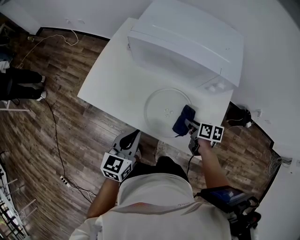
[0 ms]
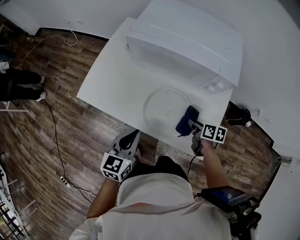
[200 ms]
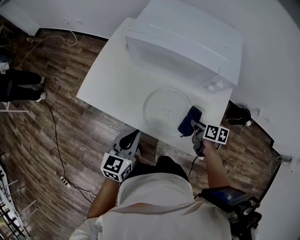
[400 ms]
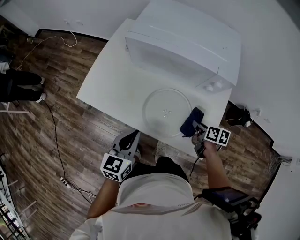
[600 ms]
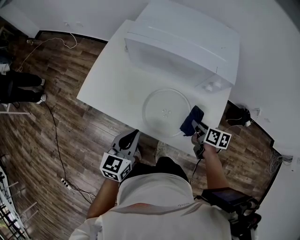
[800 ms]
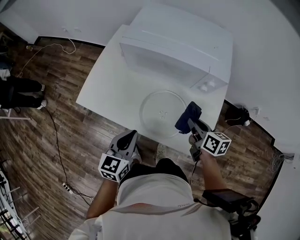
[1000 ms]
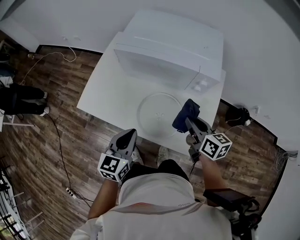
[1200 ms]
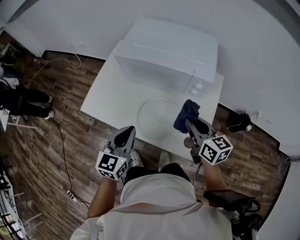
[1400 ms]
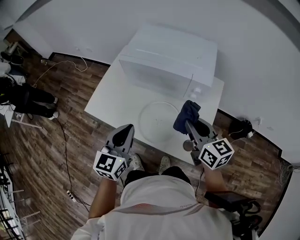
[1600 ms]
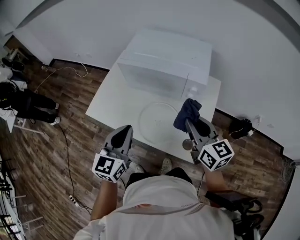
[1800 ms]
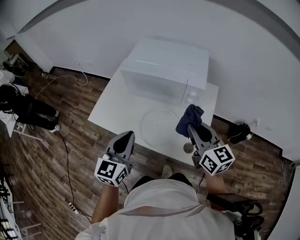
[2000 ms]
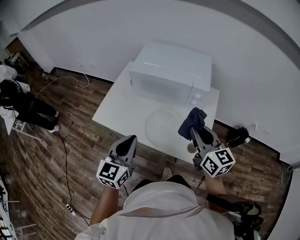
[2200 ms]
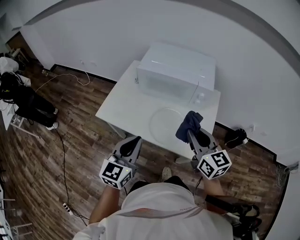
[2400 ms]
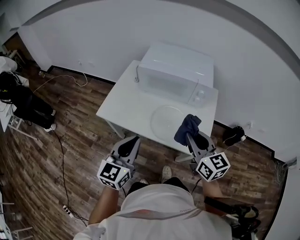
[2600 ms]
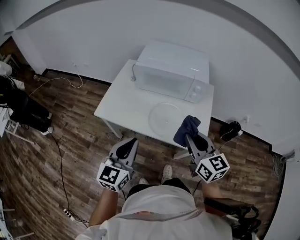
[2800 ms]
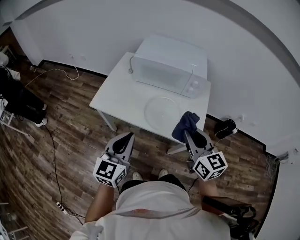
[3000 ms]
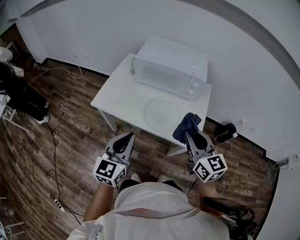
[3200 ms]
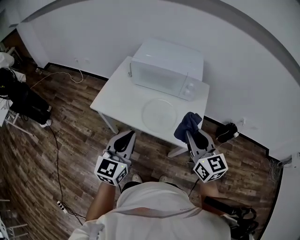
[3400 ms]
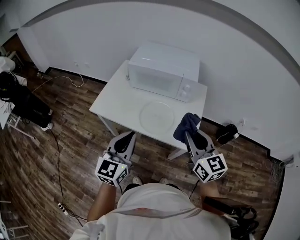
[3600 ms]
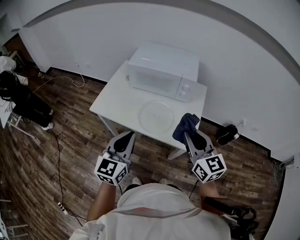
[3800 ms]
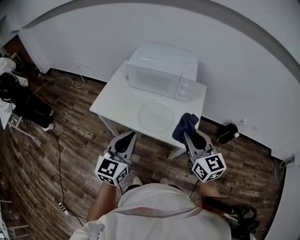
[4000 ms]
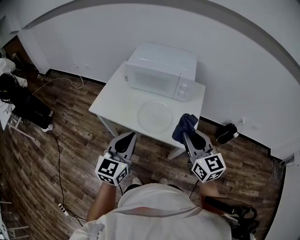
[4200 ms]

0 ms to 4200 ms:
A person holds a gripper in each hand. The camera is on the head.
0 ms to 1400 ms: The left gripper goes about 10 cm upward; the right gripper heads upward, covering some 20 cm, and swivels roughly 40 degrees.
1400 ms to 2800 ms: The right gripper goes roughly 25 cm backward, upward and to the left. Meanwhile the left gripper heads backward, to the left and upward, covering roughly 20 cm.
2800 ms to 4200 ms: Both grippers move to the right, about 10 cm.

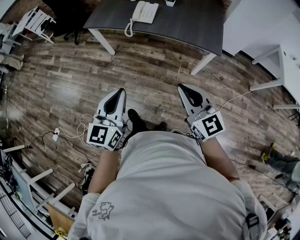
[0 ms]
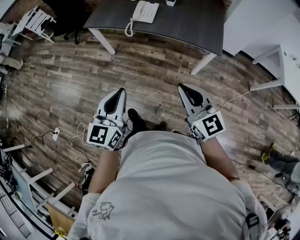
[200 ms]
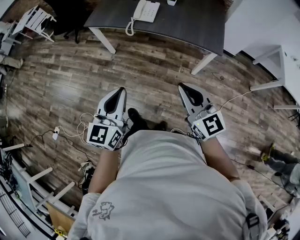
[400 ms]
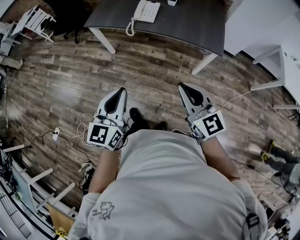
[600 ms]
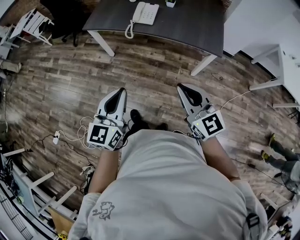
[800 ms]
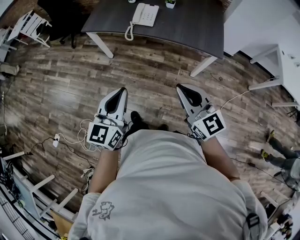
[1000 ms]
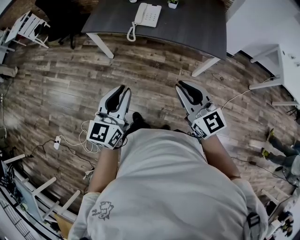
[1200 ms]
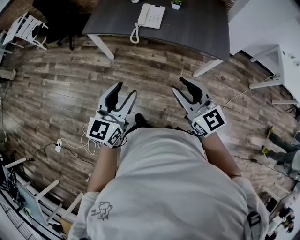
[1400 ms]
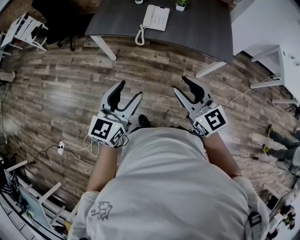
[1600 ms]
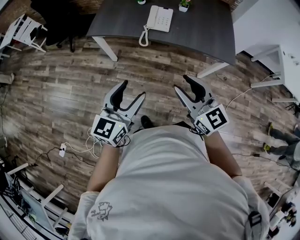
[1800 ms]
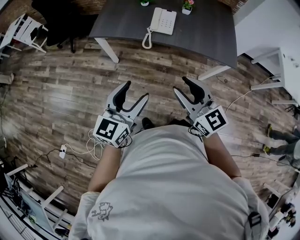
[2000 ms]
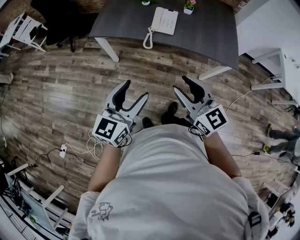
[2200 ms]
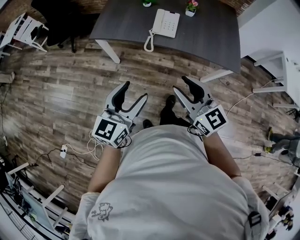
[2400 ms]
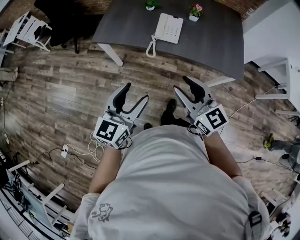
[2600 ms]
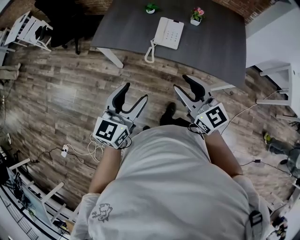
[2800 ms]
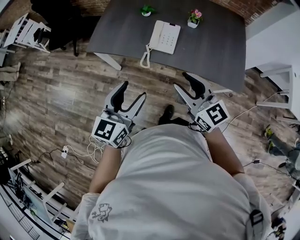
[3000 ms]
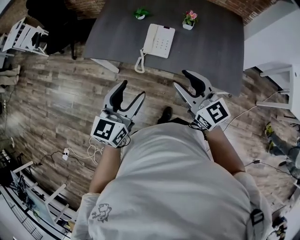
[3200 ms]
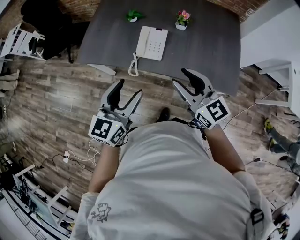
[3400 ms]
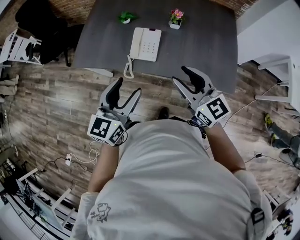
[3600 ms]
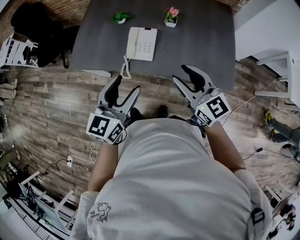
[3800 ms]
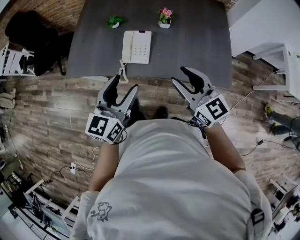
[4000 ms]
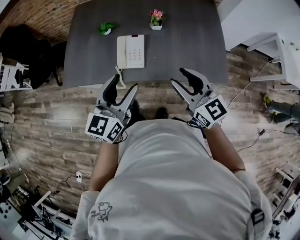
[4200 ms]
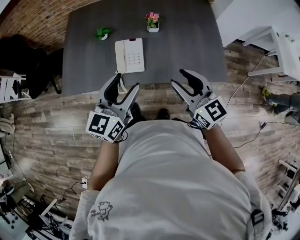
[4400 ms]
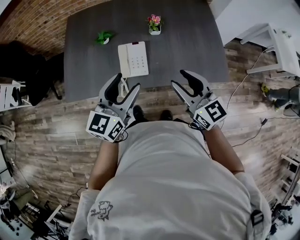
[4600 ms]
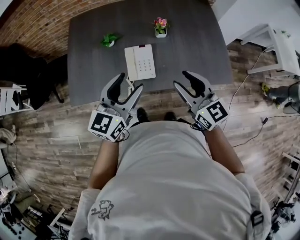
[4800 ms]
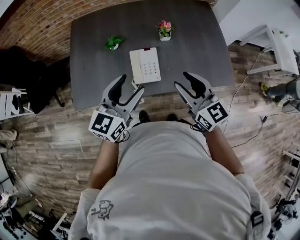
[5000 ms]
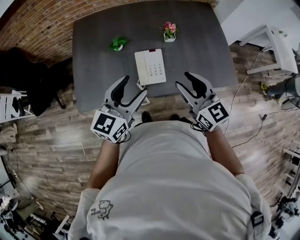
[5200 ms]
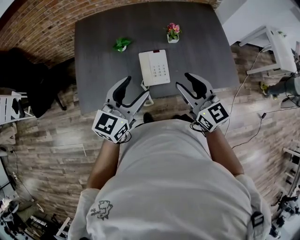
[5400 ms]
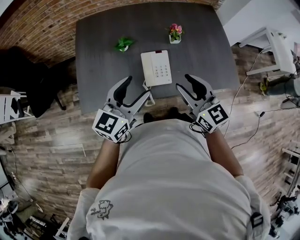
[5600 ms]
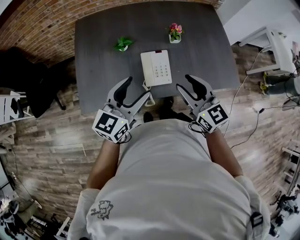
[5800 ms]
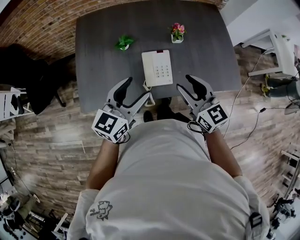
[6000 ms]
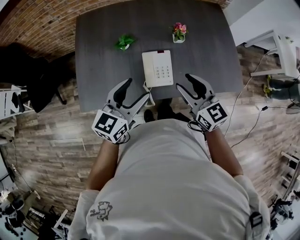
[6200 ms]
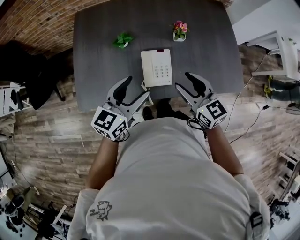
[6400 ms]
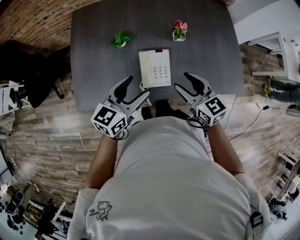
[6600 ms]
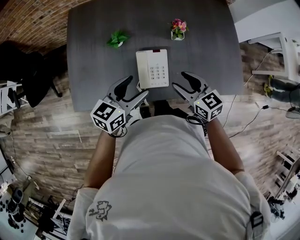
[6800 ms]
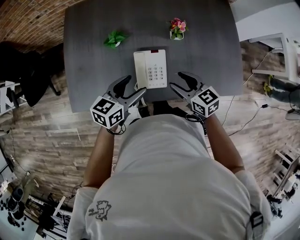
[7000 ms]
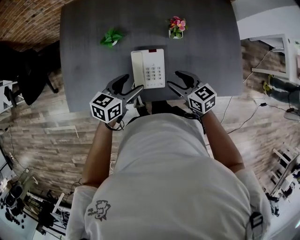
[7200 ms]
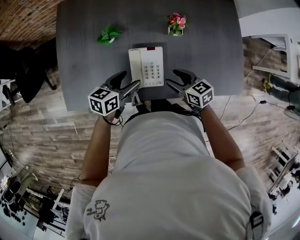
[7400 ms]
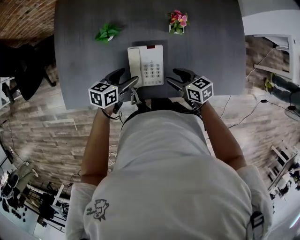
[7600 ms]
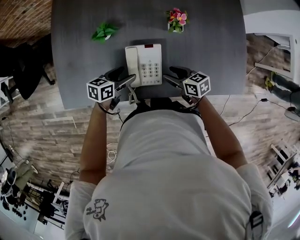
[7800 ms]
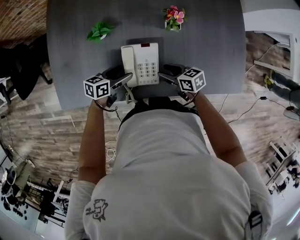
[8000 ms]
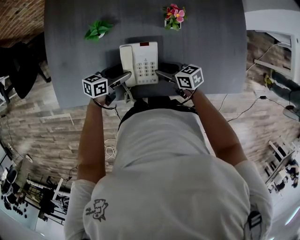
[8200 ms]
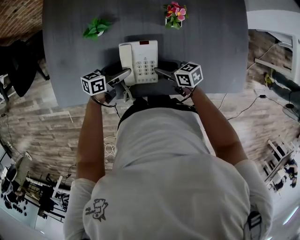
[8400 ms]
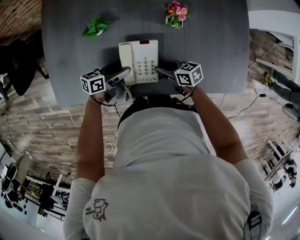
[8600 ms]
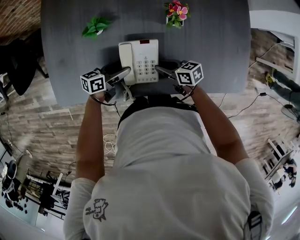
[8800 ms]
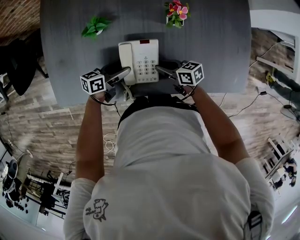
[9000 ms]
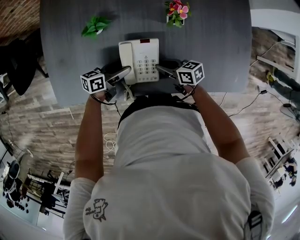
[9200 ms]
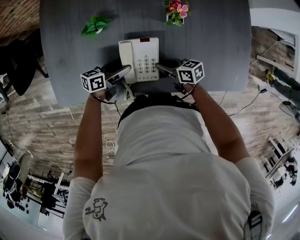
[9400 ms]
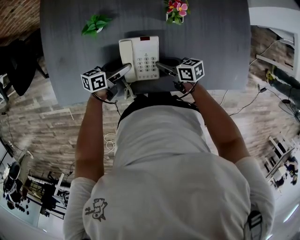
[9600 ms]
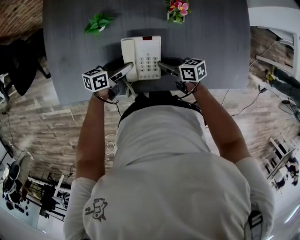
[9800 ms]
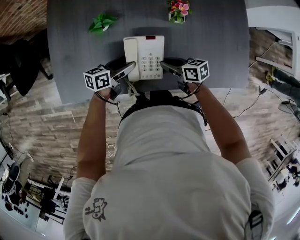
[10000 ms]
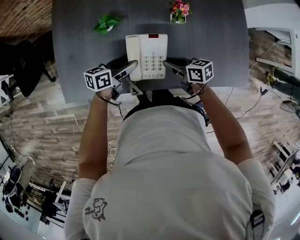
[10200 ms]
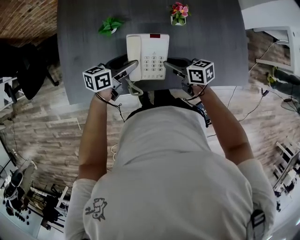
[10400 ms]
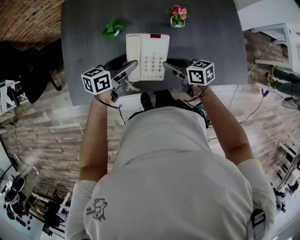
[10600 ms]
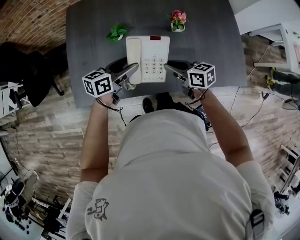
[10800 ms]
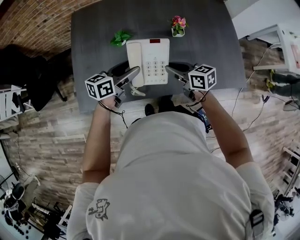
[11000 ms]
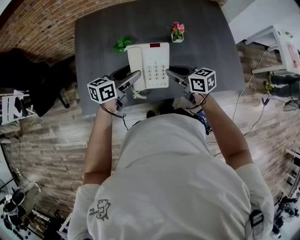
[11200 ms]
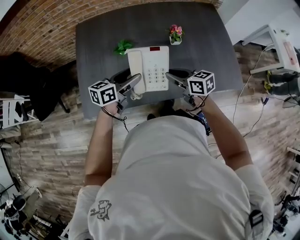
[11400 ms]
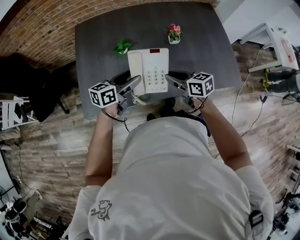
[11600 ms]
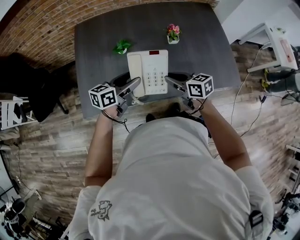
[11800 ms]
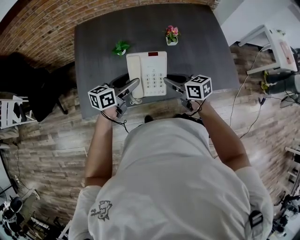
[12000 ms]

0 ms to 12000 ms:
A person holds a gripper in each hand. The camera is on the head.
0 ms to 1600 ms: The grippers both shift forward and to the left by about 20 cm. The left gripper opens its fingers, while the right gripper opens its fingers.
1600 ms to 3000 ms: The two grippers go roughly 20 cm forward.
3000 ms to 4400 ms: The left gripper is displaced forward and to the right by some 20 cm; the right gripper goes about 15 cm to the right and forward.
4400 ms to 6000 ms: The right gripper goes roughly 15 cm to the left. The left gripper shifts approximately 15 cm to the left and forward.
6000 ms to 7600 ms: The right gripper shifts about 25 cm downward, and changes its angle by roughly 40 degrees; the left gripper shifts some 25 cm downward and forward, and changes its angle by roughly 40 degrees.
7600 ms to 9000 ms: Both grippers move downward, roughly 5 cm. The right gripper closes up.
9000 ms to 10400 ms: The grippers both shift upward by approximately 10 cm.
10400 ms to 12000 ms: Both grippers travel together upward and backward, some 10 cm.

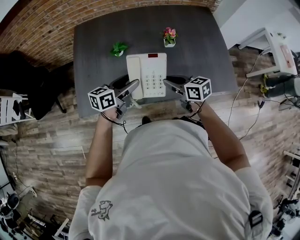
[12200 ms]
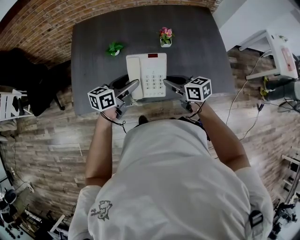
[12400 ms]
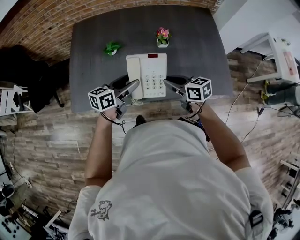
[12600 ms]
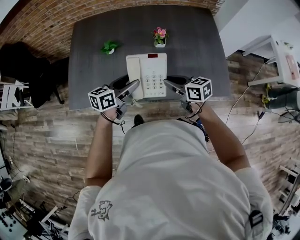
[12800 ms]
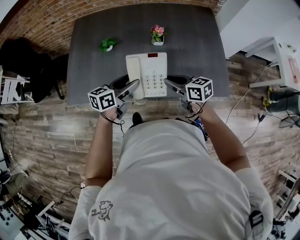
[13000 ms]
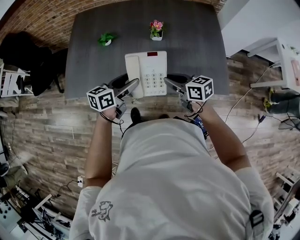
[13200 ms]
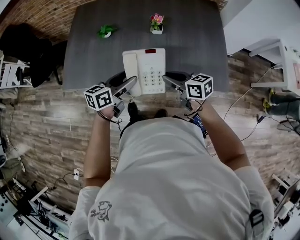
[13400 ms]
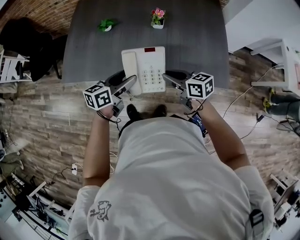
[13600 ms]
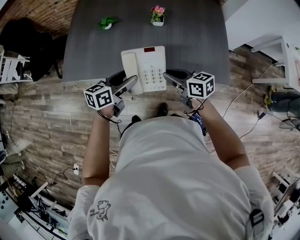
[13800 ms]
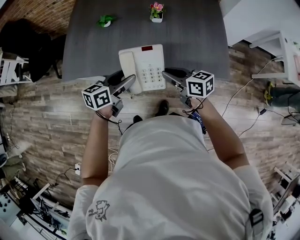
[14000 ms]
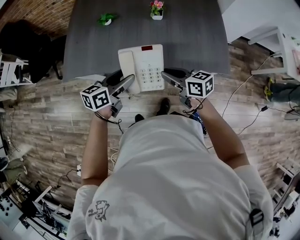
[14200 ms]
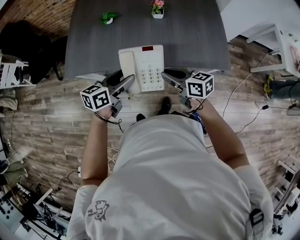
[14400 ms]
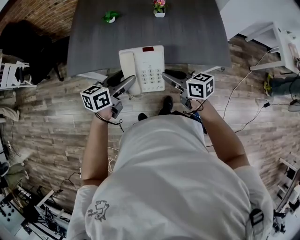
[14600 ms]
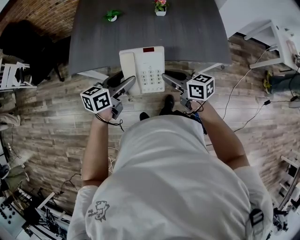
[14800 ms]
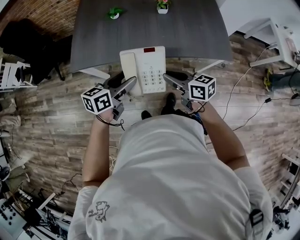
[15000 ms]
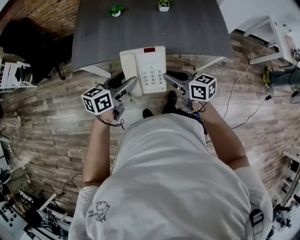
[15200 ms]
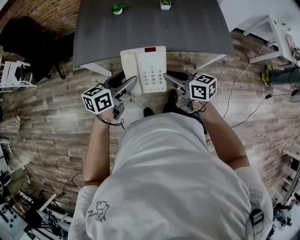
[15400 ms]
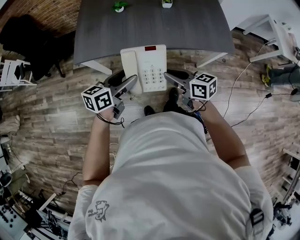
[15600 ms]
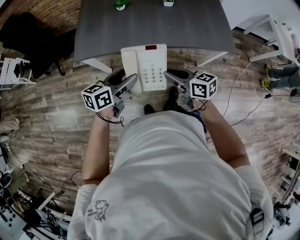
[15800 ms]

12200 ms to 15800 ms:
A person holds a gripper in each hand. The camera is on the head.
12200 ms to 14000 ms: The left gripper heads backward and to the right, covering about 20 cm; the right gripper heads to the right and backward, covering some 20 cm.
14000 ms to 15800 ms: Both grippers travel together backward and to the left, some 20 cm.

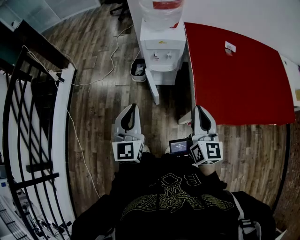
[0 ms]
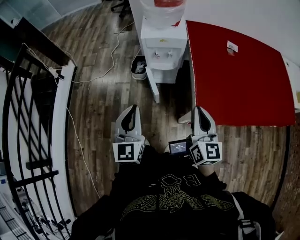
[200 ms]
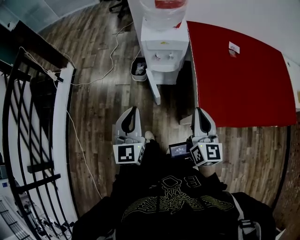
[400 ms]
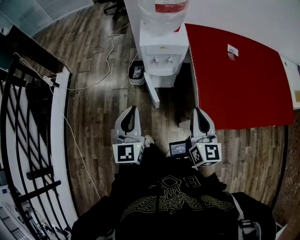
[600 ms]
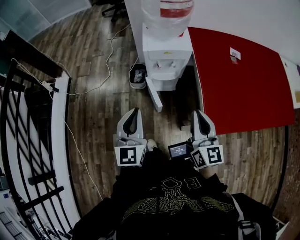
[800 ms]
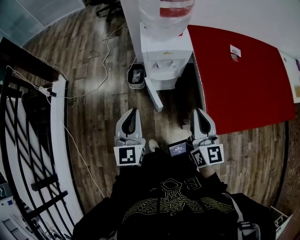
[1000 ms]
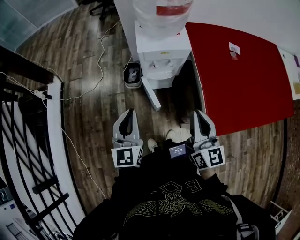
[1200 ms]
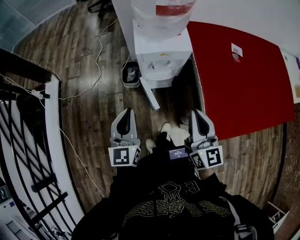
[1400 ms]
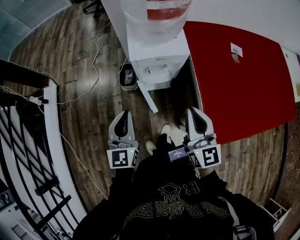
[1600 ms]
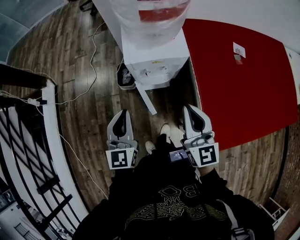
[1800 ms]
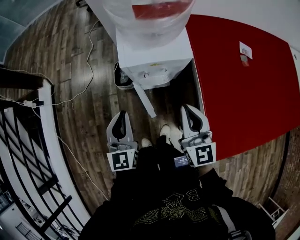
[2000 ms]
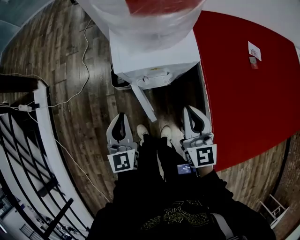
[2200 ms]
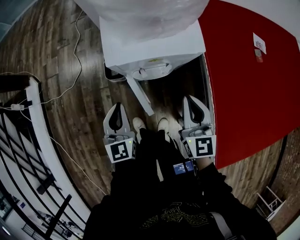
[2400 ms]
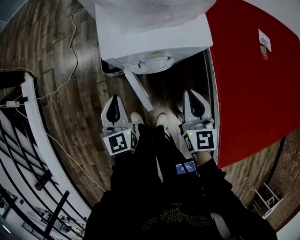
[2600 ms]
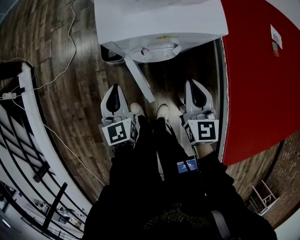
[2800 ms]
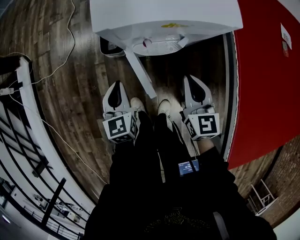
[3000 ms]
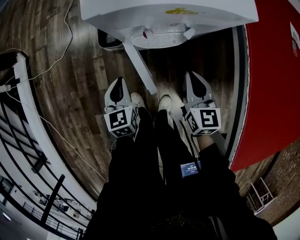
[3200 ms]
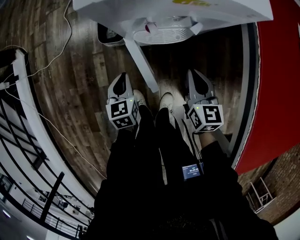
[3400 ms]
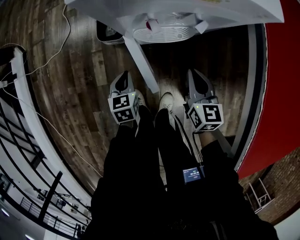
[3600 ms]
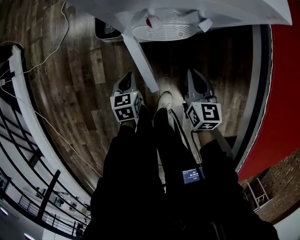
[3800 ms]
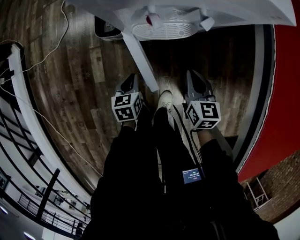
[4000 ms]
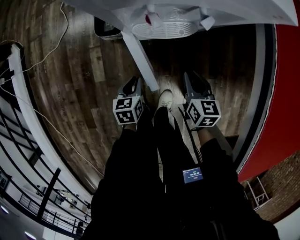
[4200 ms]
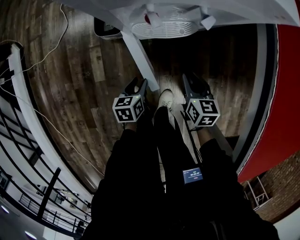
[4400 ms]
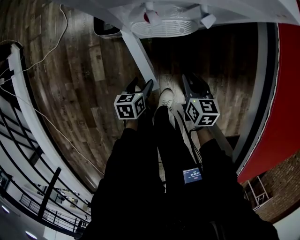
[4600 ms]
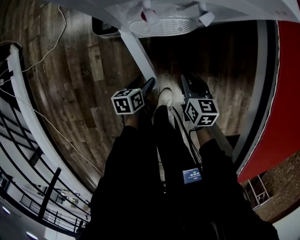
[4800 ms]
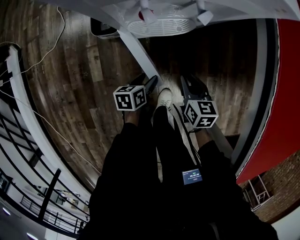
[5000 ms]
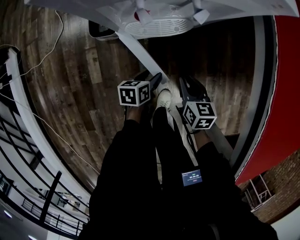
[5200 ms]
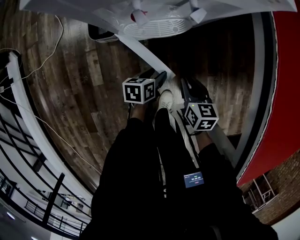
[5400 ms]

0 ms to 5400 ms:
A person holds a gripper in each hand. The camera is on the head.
0 ms to 1400 ms: The right gripper is displaced forward and to the left by about 20 cm. Meanwhile the left gripper shifts about 20 cm forward.
1400 ms to 2800 ms: Both grippers travel together downward and forward, approximately 35 cm. The right gripper changes its angle by some 20 degrees.
2800 ms to 4000 ms: The two grippers go roughly 25 cm downward. The left gripper turns by some 30 degrees.
4000 ms to 5400 ms: The left gripper heads to the right, covering roughly 10 cm, changes its angle by roughly 30 degrees, and opens up. The right gripper travels downward by roughly 5 cm, and opens.
